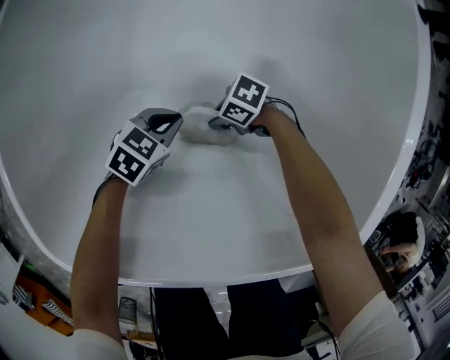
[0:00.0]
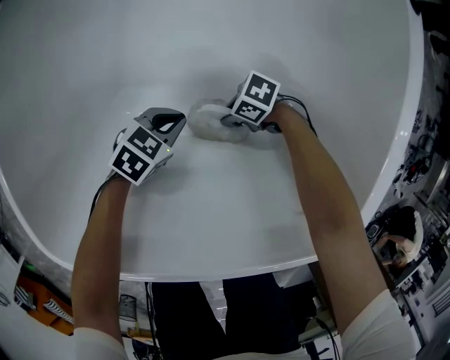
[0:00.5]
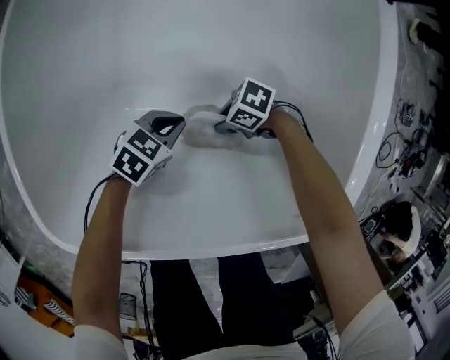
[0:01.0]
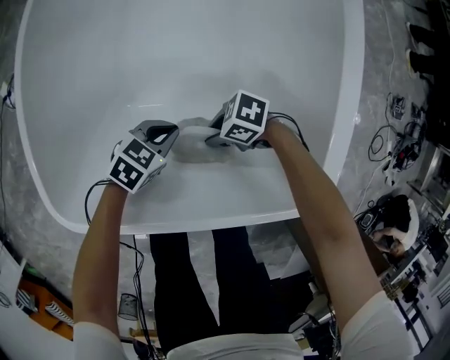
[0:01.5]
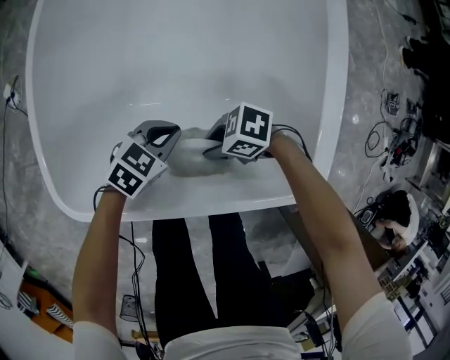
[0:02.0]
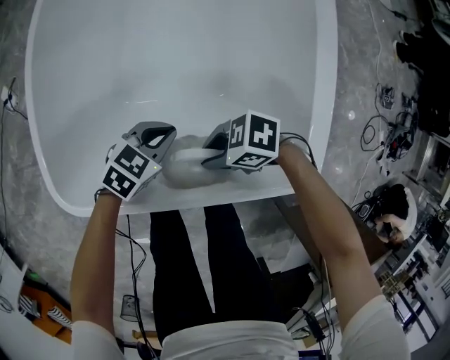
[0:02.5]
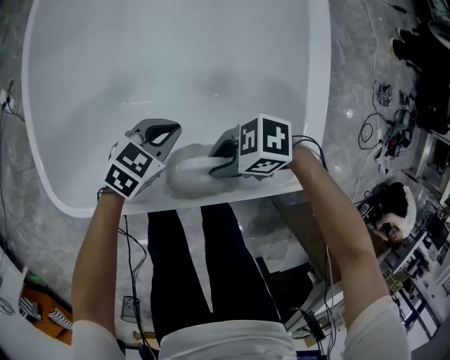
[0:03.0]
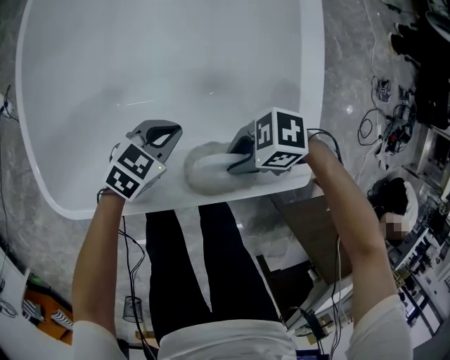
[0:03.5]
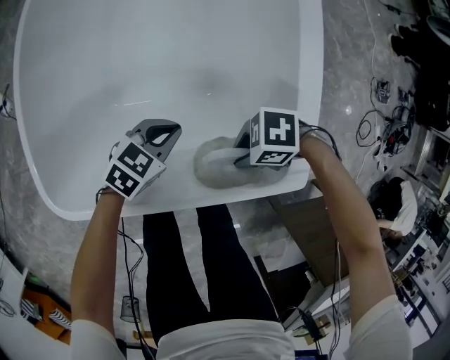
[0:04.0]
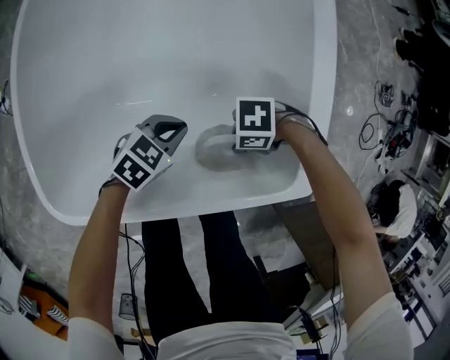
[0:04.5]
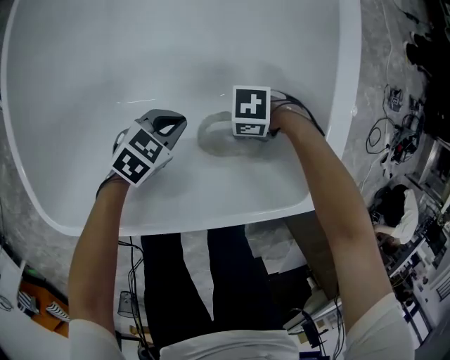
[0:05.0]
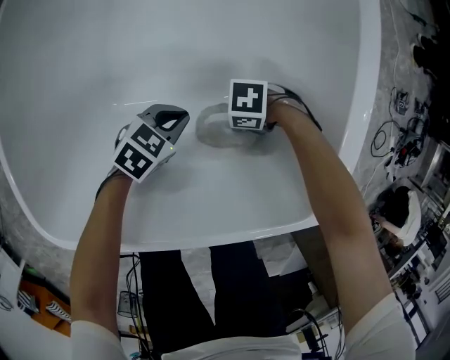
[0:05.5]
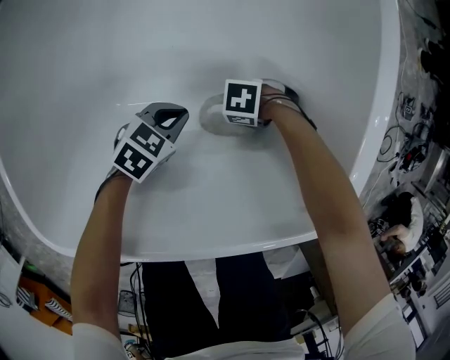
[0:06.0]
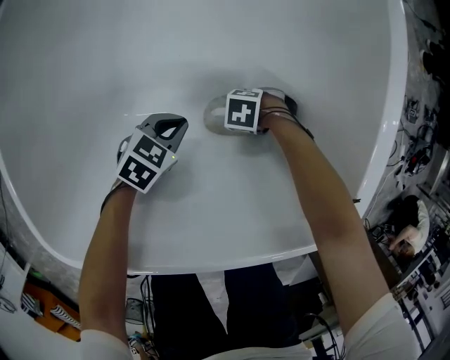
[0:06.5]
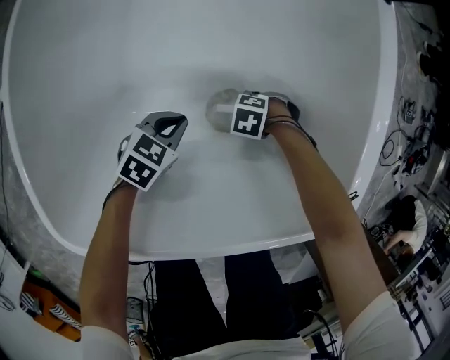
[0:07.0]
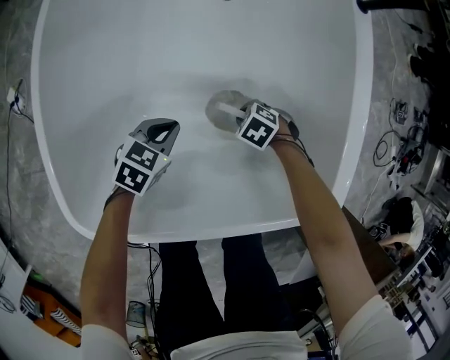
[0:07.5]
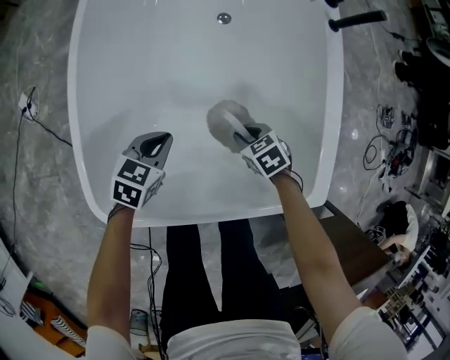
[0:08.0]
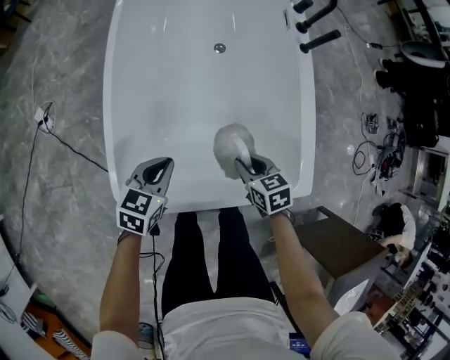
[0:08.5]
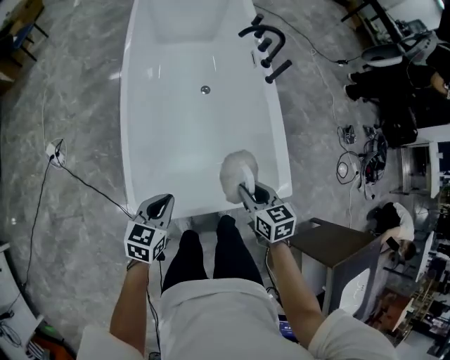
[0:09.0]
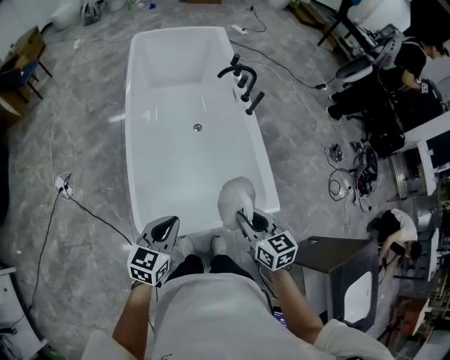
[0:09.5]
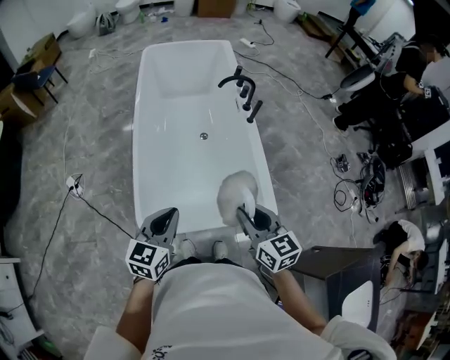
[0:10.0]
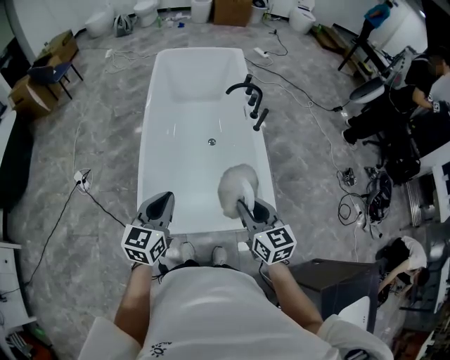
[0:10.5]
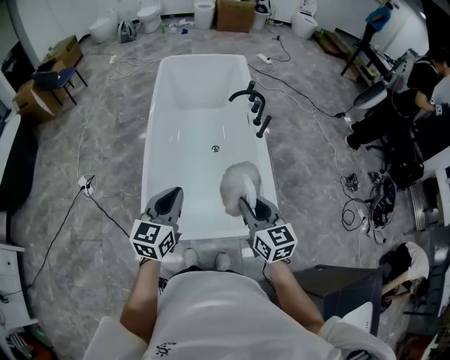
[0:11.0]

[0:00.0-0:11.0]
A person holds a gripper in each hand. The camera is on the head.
0.0 to 2.0 s: Both grippers travel together upward and forward, roughly 20 cm.
2.0 to 3.5 s: The right gripper goes about 15 cm upward, forward and to the left. Meanwhile the left gripper ends up roughly 5 cm from where it was.
3.5 to 5.5 s: The left gripper is displaced downward by about 15 cm, while the right gripper heads downward, covering roughly 25 cm, and swivels some 30 degrees.
5.5 to 7.5 s: The left gripper moves some 10 cm. Meanwhile the right gripper travels downward and back again, about 10 cm each way, and changes its angle by approximately 40 degrees.
7.5 to 9.0 s: Both grippers travel together upward, approximately 40 cm. The left gripper swivels some 20 degrees, while the right gripper angles its fingers upward, by roughly 40 degrees.
9.0 to 11.0 s: Both grippers travel together upward, roughly 25 cm. The left gripper rotates about 30 degrees. Meanwhile the right gripper changes its angle by approximately 30 degrees.

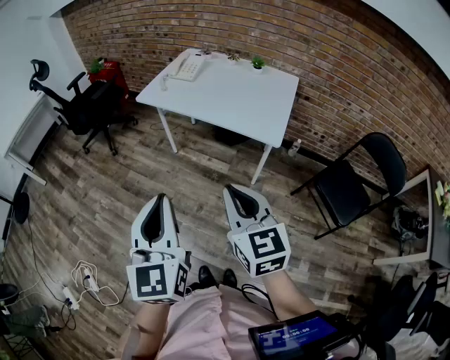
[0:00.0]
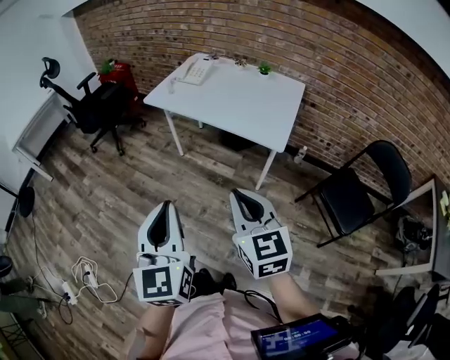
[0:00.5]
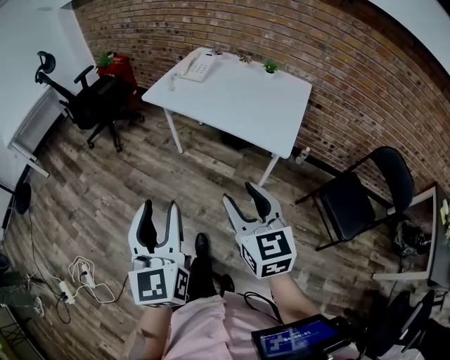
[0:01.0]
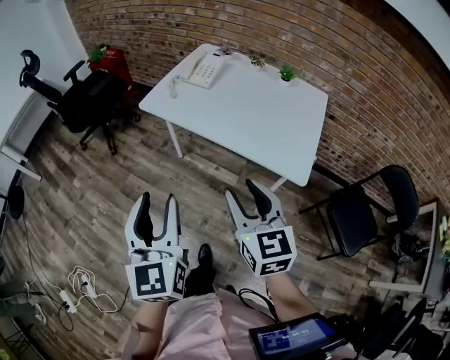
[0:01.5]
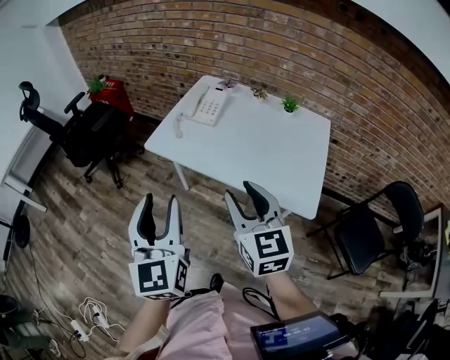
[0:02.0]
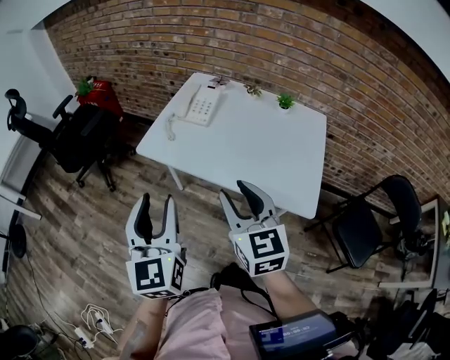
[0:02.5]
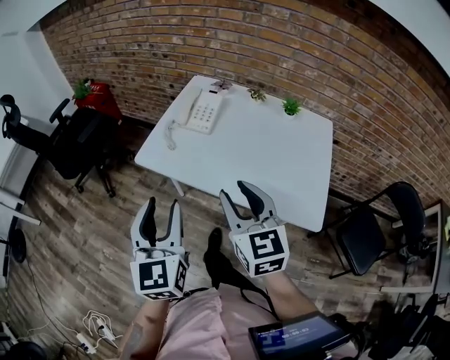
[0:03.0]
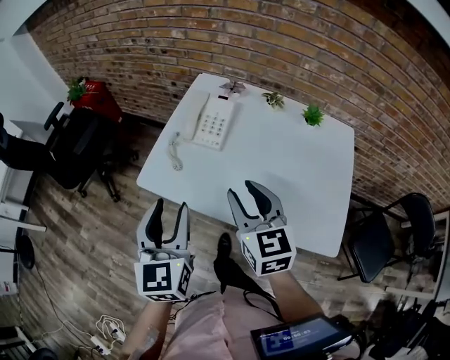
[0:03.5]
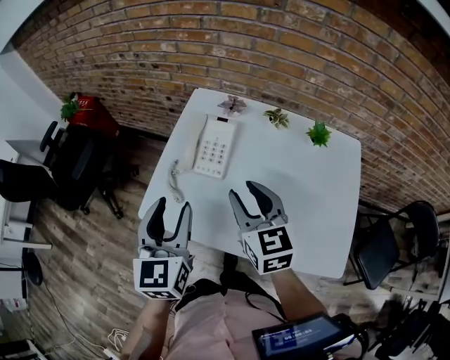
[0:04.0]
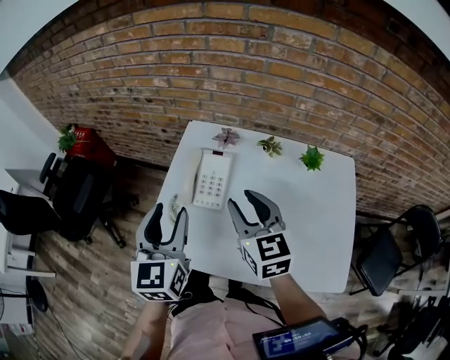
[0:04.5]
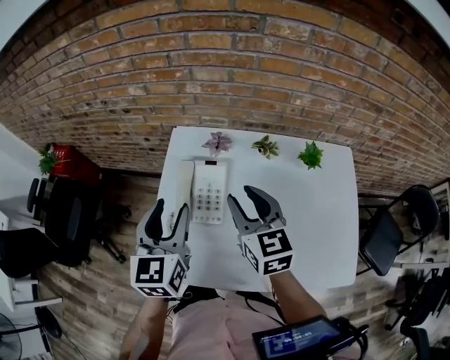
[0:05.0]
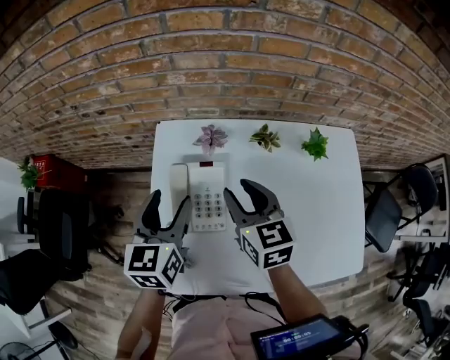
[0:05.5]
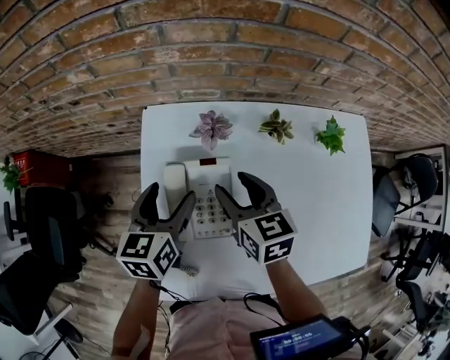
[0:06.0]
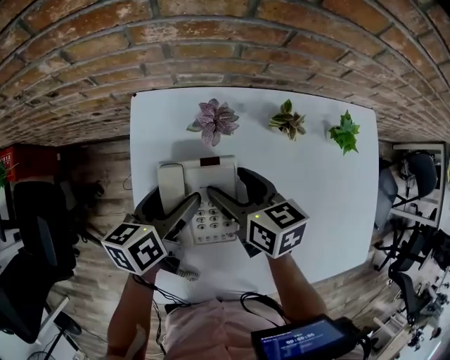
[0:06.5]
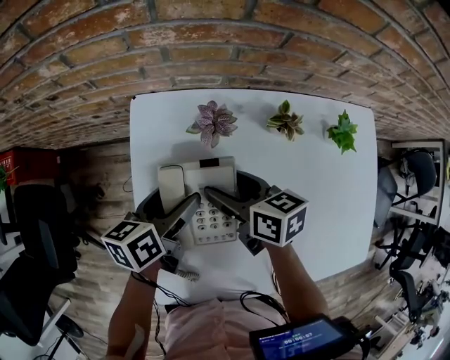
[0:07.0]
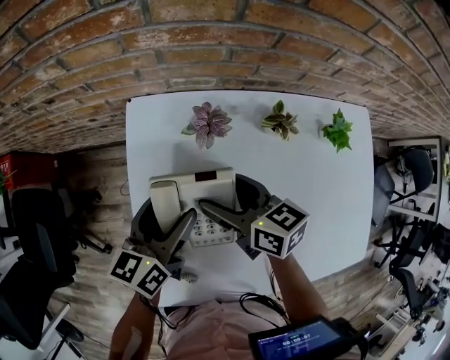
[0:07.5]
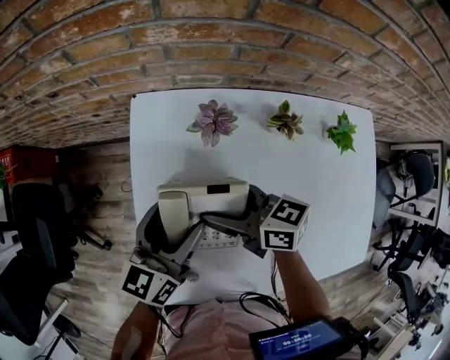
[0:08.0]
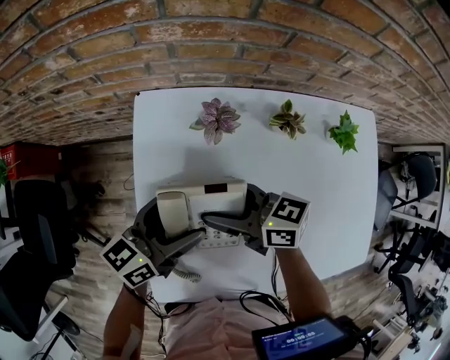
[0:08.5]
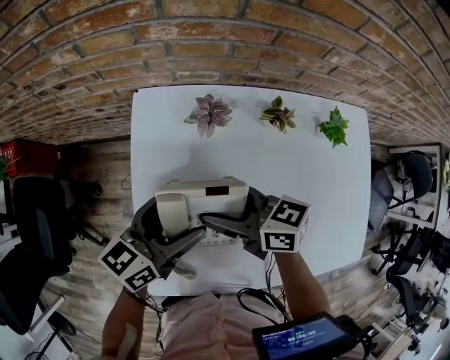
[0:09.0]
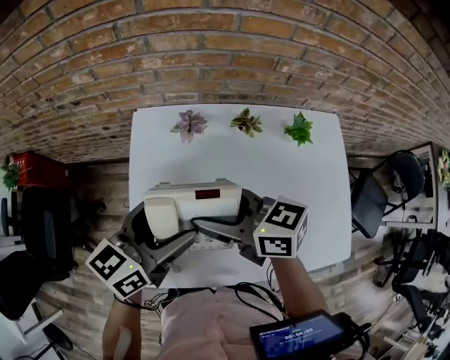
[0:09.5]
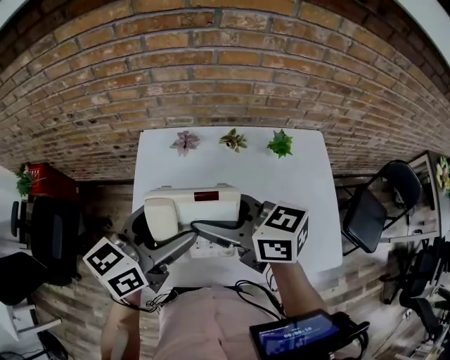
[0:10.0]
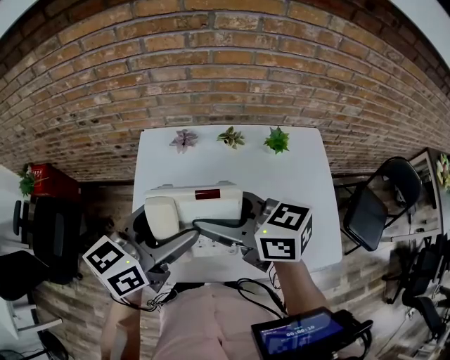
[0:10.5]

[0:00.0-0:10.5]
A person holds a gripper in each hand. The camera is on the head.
0.0 to 2.0 s: Both grippers move forward, some 30 cm. The left gripper opens. The right gripper opens.
2.0 to 4.0 s: Both grippers travel together forward, about 35 cm. The left gripper turns by about 20 degrees.
4.0 to 6.5 s: The right gripper ends up some 30 cm from where it was, turns by approximately 40 degrees, and opens. Meanwhile the left gripper ends up approximately 35 cm from where it was, turns by some 60 degrees, and opens up.
6.5 to 8.5 s: The left gripper shifts by approximately 5 cm, and turns by approximately 30 degrees; the right gripper moves to the left, roughly 5 cm, and turns by about 30 degrees.
8.5 to 10.5 s: Both grippers move upward and backward, some 25 cm.

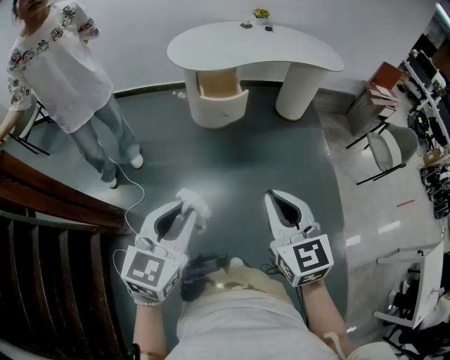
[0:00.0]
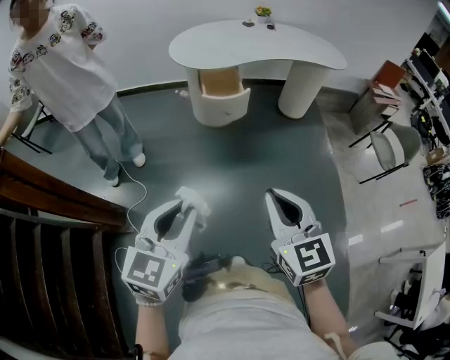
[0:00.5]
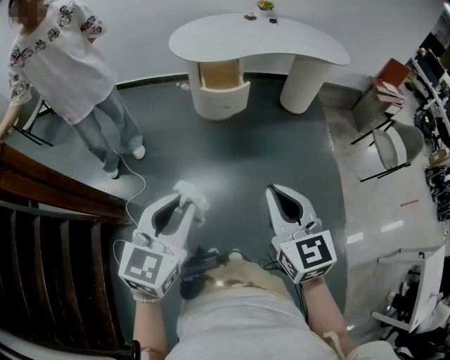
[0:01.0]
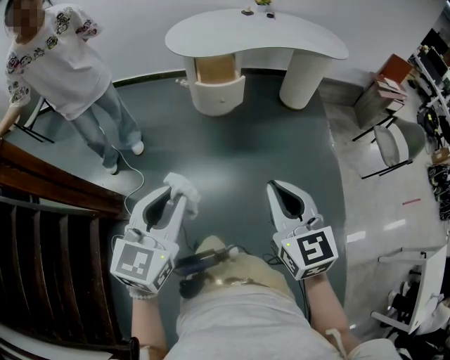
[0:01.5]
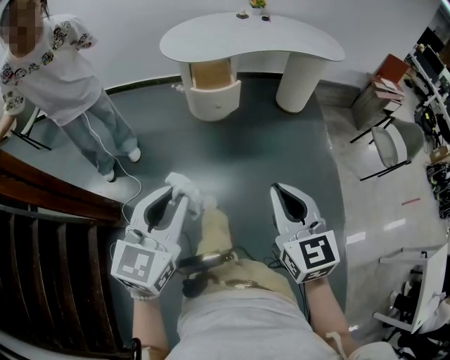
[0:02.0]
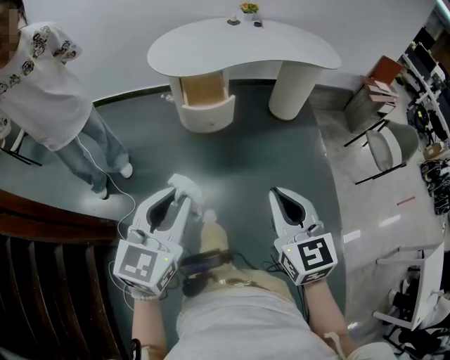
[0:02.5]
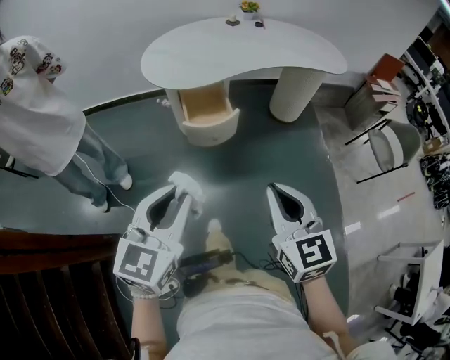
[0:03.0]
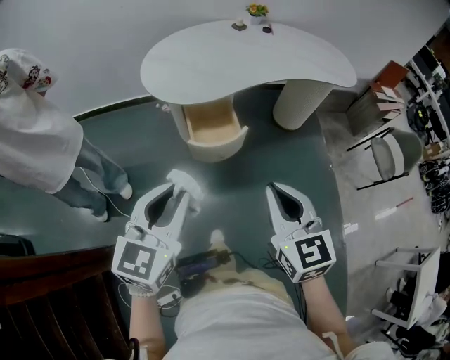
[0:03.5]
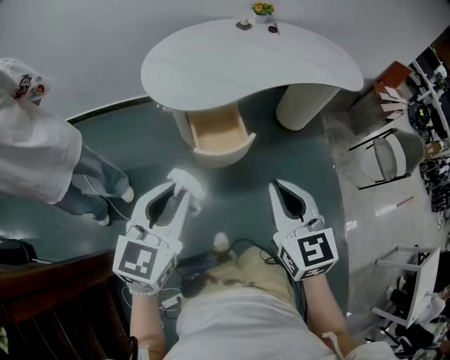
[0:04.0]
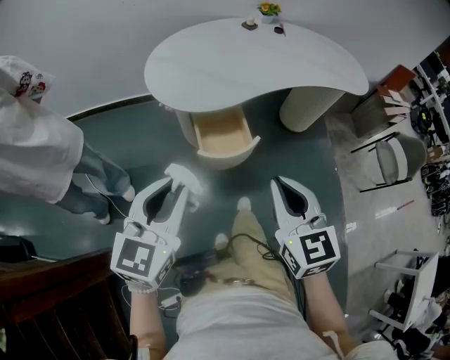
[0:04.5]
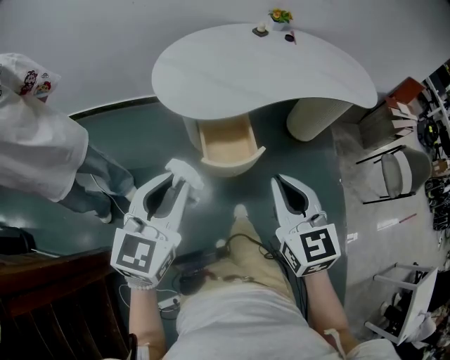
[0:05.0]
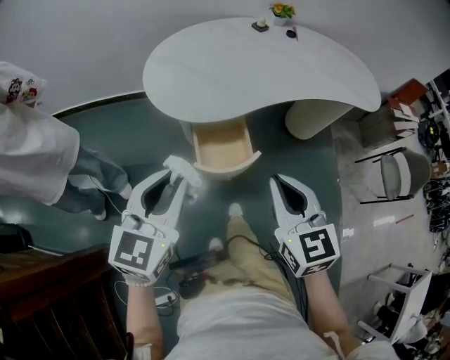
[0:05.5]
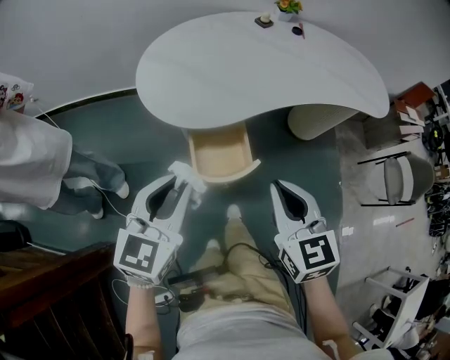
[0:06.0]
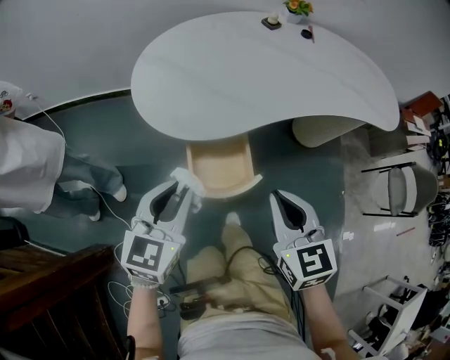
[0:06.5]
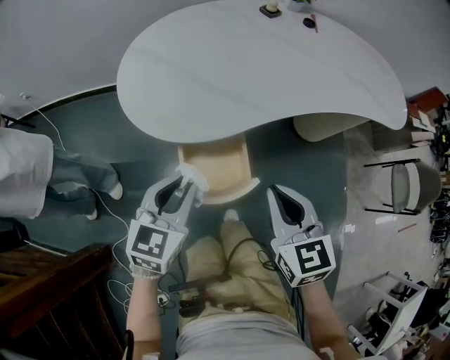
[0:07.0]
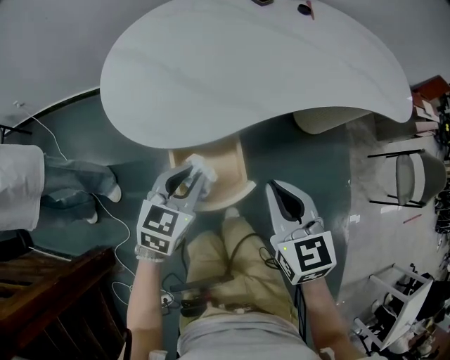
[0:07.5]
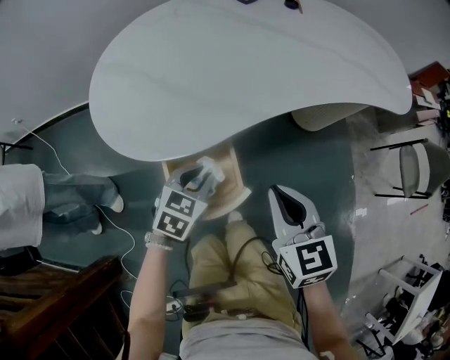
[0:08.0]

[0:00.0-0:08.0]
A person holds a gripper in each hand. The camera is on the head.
0.0 to 2.0 s: The grippers both shift to the right by roughly 5 cm.
2.0 to 4.0 s: The two grippers go some 35 cm forward.
4.0 to 6.0 s: Both grippers travel together forward, about 15 cm.
6.0 to 8.0 s: The right gripper shifts about 20 cm downward, forward and to the right. Meanwhile the left gripper travels downward and forward by roughly 30 cm, and changes its angle by about 30 degrees.
